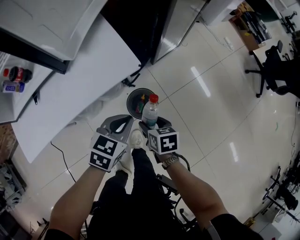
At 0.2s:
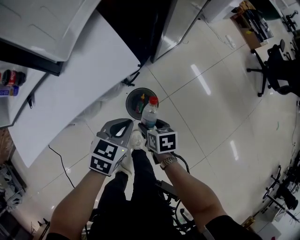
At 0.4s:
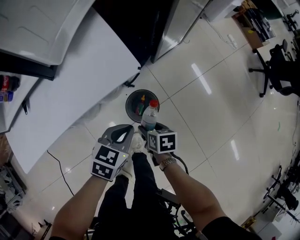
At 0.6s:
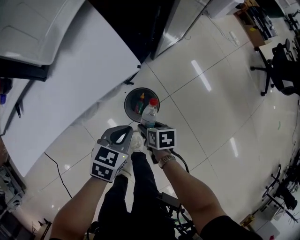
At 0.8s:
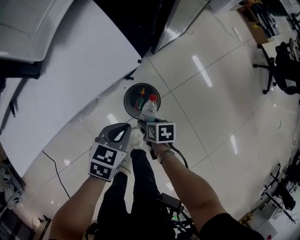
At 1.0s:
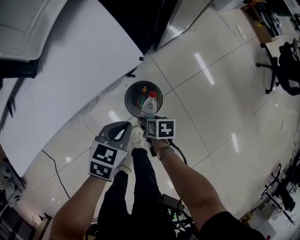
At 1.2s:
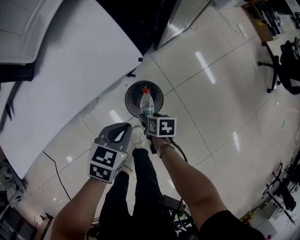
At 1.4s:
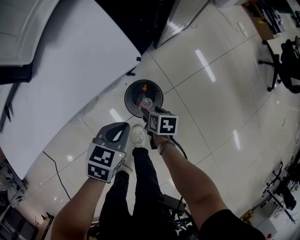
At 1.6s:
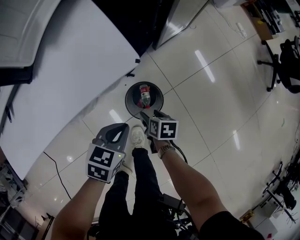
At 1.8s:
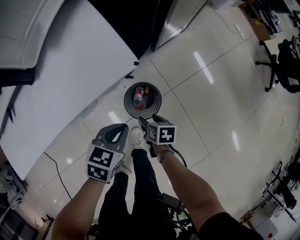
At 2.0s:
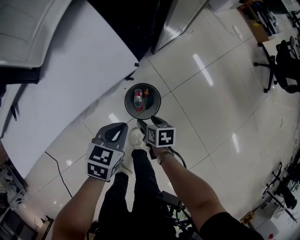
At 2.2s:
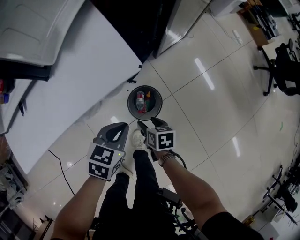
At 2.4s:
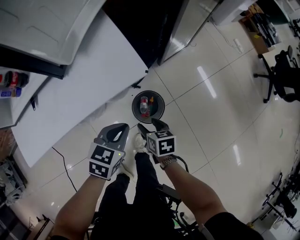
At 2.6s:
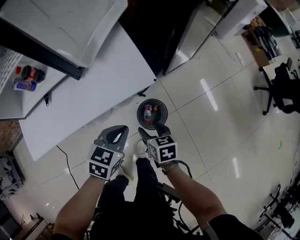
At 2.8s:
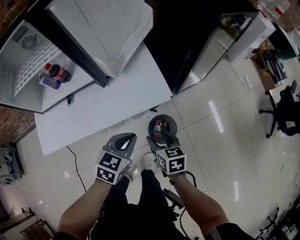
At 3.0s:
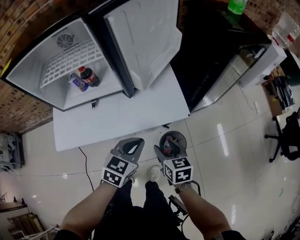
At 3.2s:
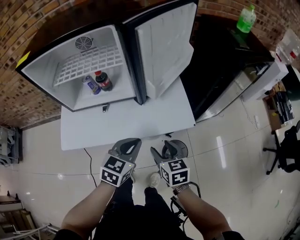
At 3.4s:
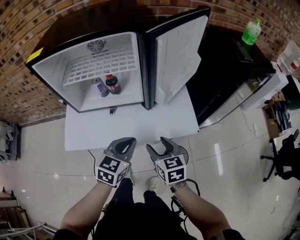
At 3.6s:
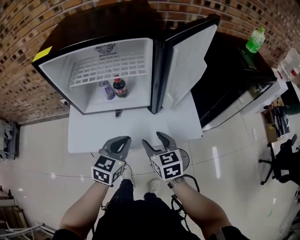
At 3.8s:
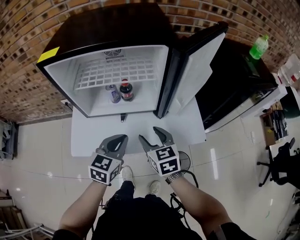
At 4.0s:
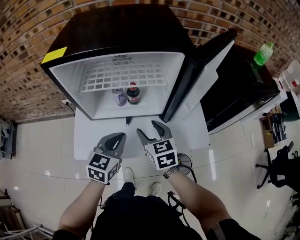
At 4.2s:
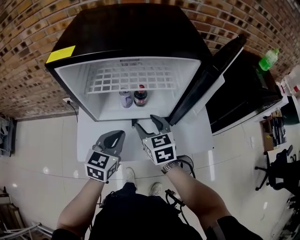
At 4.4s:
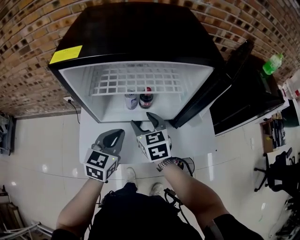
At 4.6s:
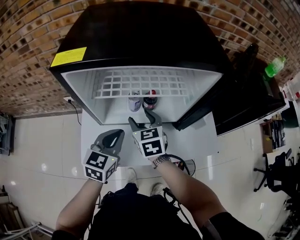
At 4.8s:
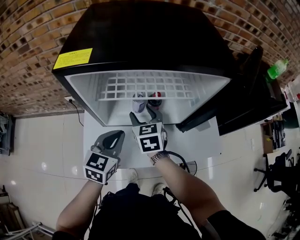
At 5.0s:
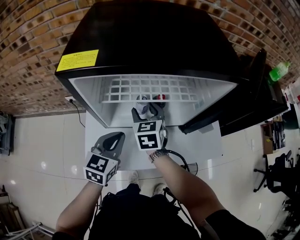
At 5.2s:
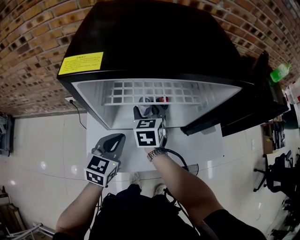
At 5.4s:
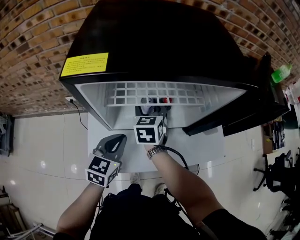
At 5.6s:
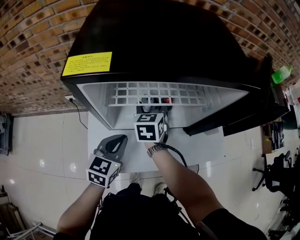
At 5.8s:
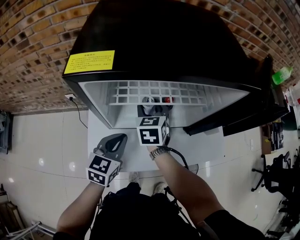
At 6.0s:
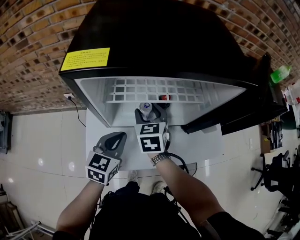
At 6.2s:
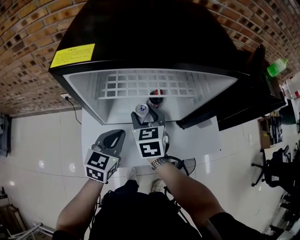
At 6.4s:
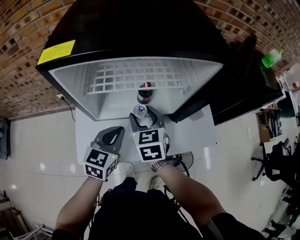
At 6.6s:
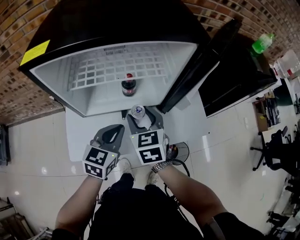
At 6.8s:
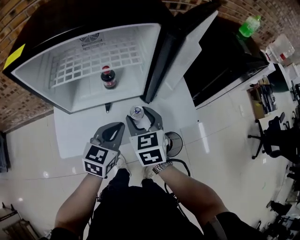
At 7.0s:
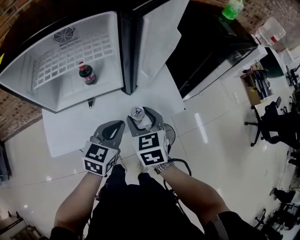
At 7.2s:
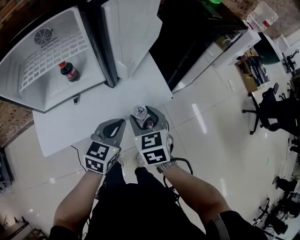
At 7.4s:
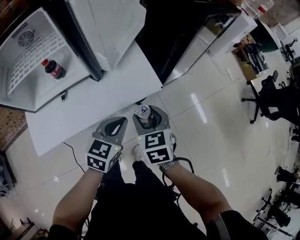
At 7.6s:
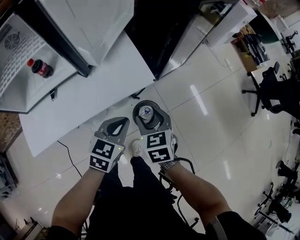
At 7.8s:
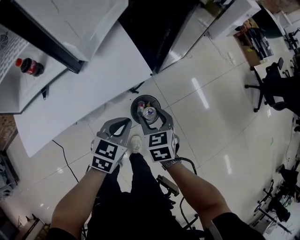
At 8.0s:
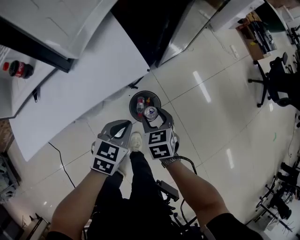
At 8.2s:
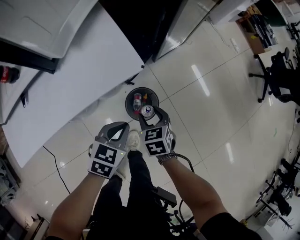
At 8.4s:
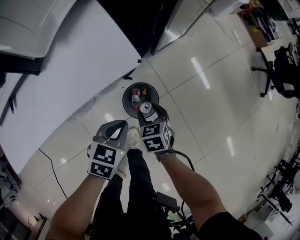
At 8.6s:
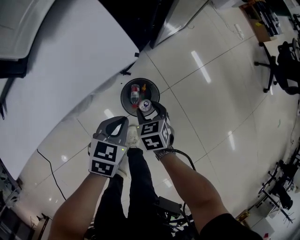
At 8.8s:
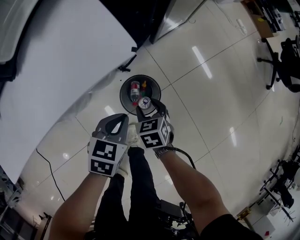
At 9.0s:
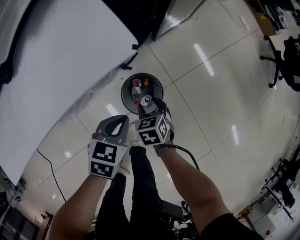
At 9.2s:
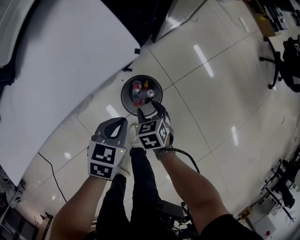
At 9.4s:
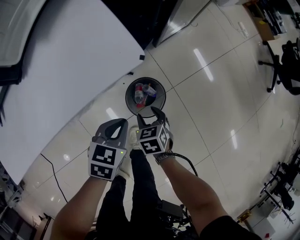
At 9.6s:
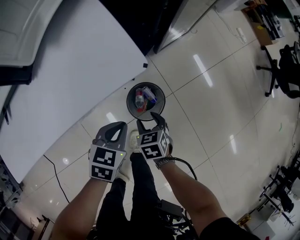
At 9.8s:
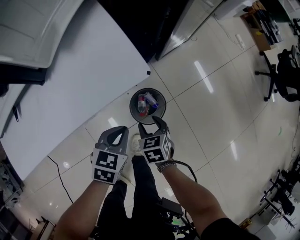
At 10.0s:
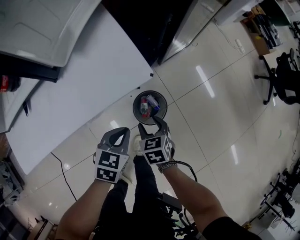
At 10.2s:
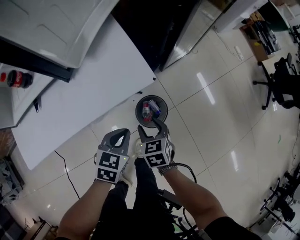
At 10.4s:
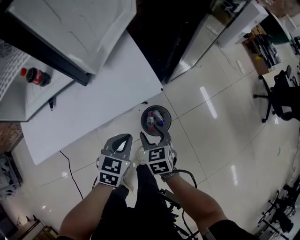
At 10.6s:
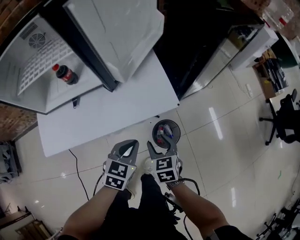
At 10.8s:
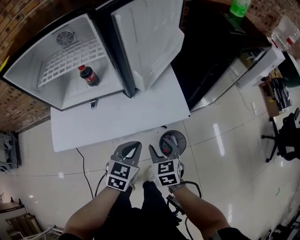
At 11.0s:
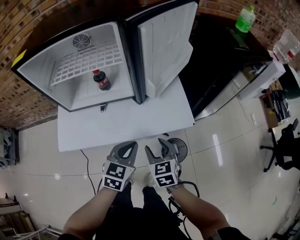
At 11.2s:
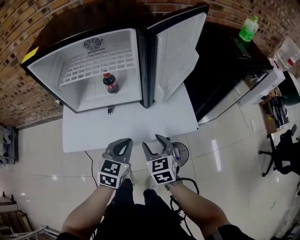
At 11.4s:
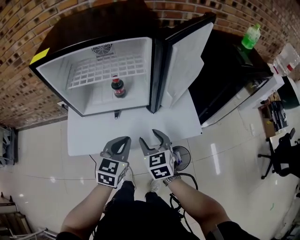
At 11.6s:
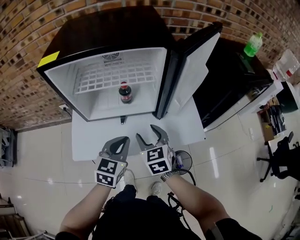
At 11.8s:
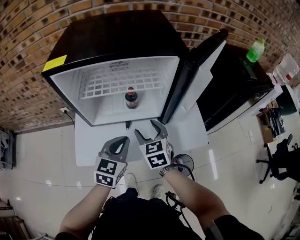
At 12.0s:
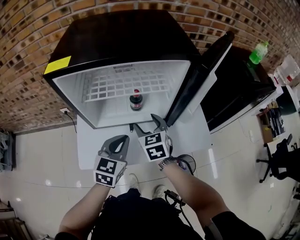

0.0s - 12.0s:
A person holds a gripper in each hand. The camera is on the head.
0.0s - 1.6s: Both grippers move downward, approximately 15 cm.
1.6s - 3.0s: The left gripper heads upward and to the left, covering approximately 25 cm, and rotates approximately 30 degrees, while the right gripper heads upward, covering about 35 cm, and changes its angle by roughly 40 degrees.
3.0s - 4.4s: The right gripper shifts approximately 40 cm to the left, forward and upward, and changes its angle by roughly 30 degrees, while the left gripper moves to the left and forward, about 35 cm, and rotates about 20 degrees.
4.4s - 6.0s: The left gripper travels to the left by about 5 cm. Meanwhile the right gripper shifts roughly 10 cm forward and to the left.
6.0s - 7.6s: Both grippers are carried to the right, approximately 50 cm. The left gripper swivels roughly 30 degrees.
7.6s - 9.0s: Both grippers travel together downward, some 30 cm. The right gripper swivels roughly 20 degrees.
9.0s - 10.4s: The two grippers go some 20 cm upward.
10.4s - 12.0s: The left gripper moves to the left and upward, roughly 40 cm, and rotates some 30 degrees. Meanwhile the right gripper goes approximately 50 cm to the left, upward and forward, and rotates roughly 30 degrees.

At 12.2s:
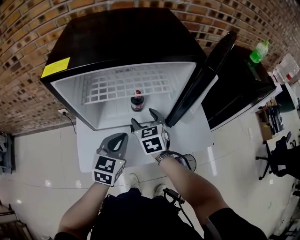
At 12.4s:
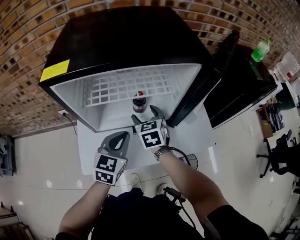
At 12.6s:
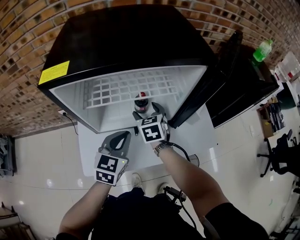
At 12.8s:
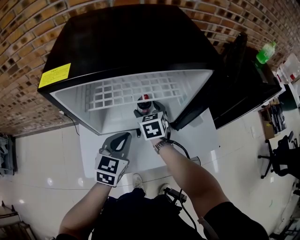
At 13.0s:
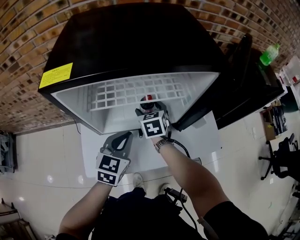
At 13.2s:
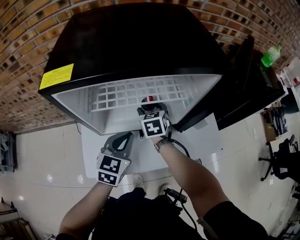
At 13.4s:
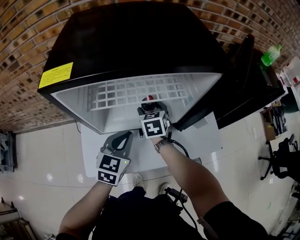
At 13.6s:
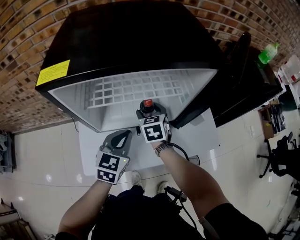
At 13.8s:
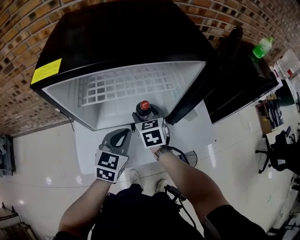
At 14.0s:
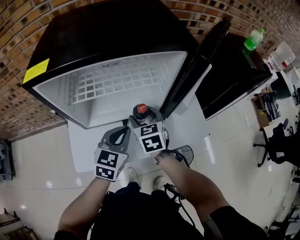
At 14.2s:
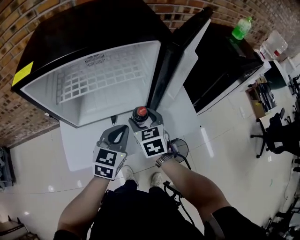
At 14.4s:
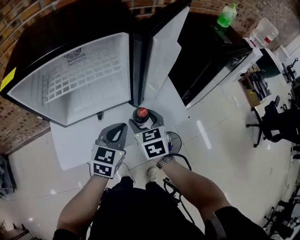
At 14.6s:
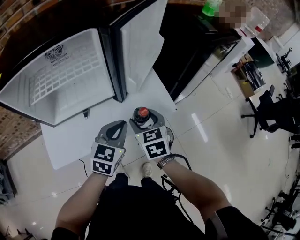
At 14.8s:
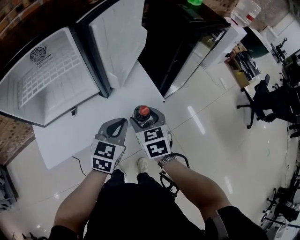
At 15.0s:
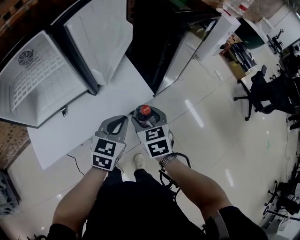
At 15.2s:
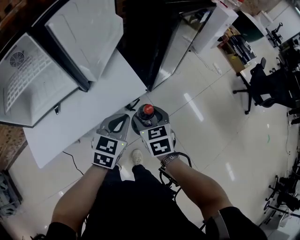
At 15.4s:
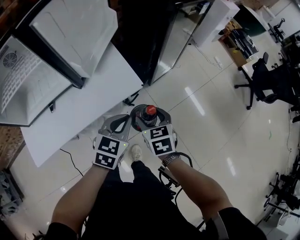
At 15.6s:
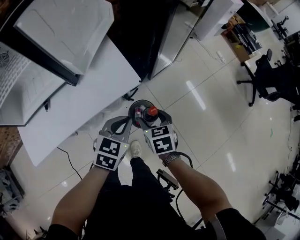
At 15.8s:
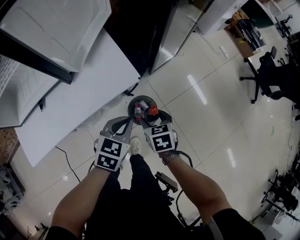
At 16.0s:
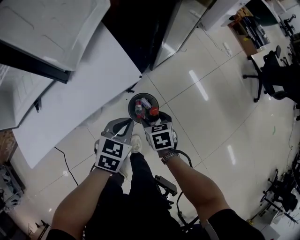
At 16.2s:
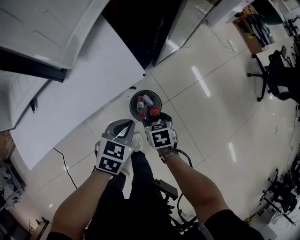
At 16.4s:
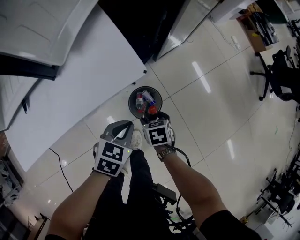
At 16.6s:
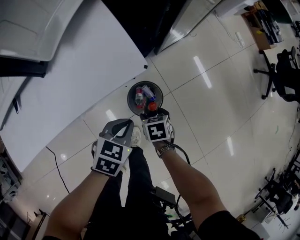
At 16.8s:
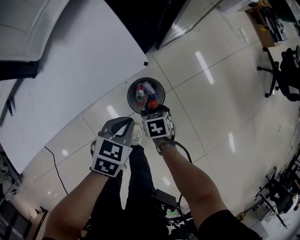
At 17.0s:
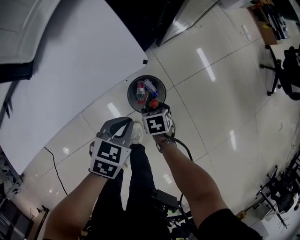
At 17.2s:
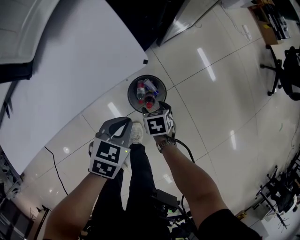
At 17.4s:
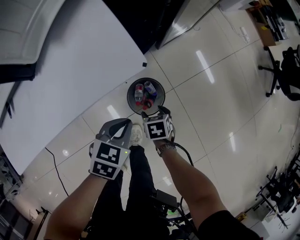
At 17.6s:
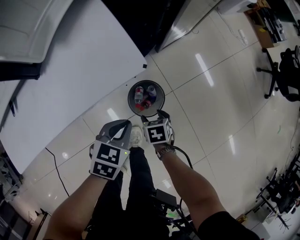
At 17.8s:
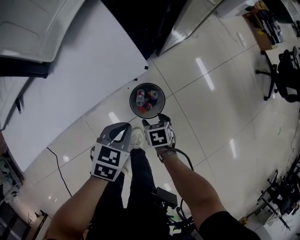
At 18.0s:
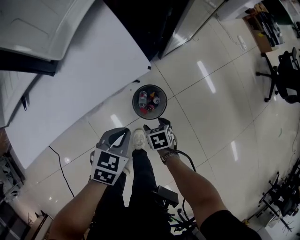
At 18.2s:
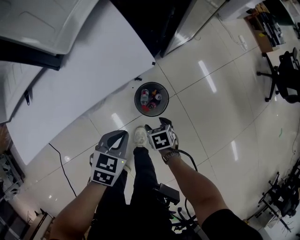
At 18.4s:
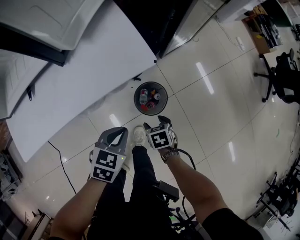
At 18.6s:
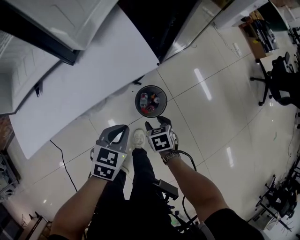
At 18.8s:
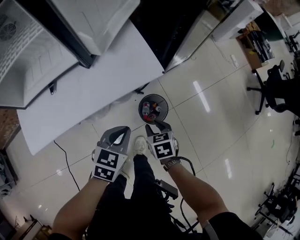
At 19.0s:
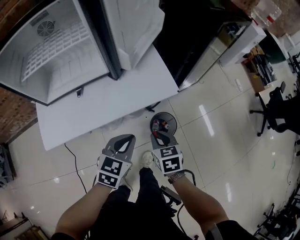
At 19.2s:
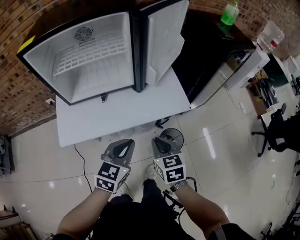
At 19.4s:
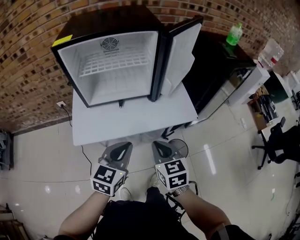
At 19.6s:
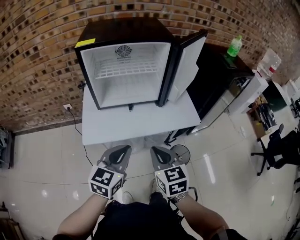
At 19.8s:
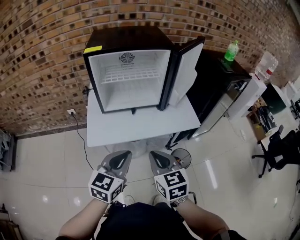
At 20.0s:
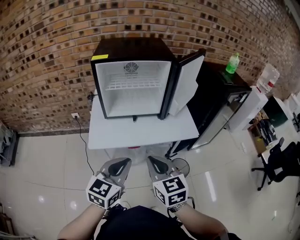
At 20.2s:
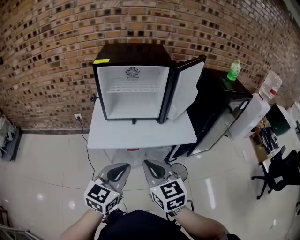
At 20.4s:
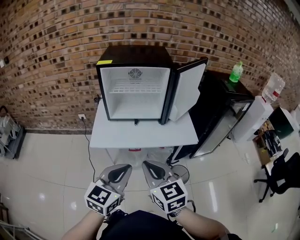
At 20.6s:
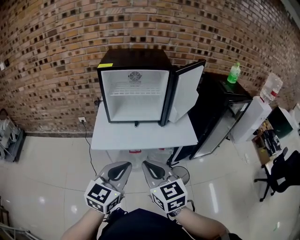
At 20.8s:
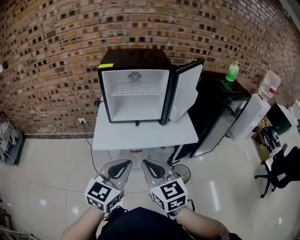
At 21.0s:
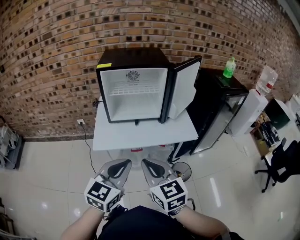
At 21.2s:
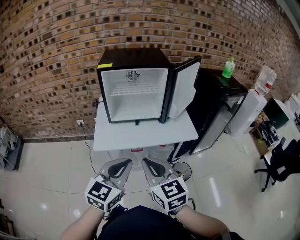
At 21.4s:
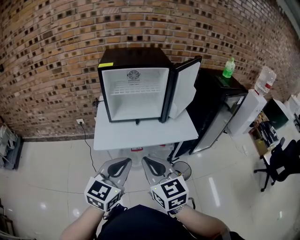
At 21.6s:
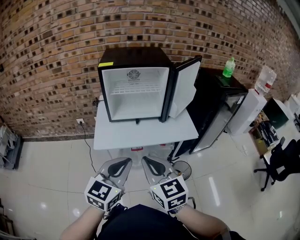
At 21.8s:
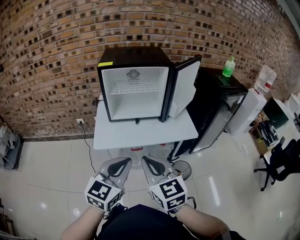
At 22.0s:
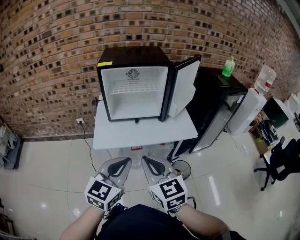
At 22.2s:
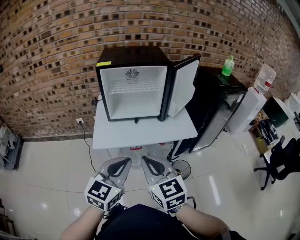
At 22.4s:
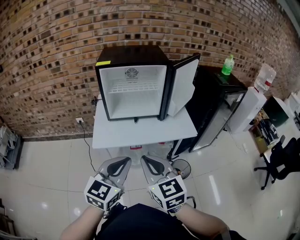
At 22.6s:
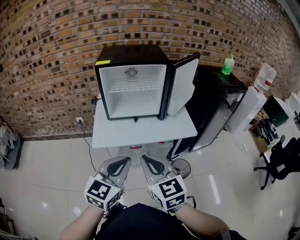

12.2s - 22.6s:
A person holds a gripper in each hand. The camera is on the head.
12.2s - 13.6s: The right gripper shifts approximately 5 cm forward.
13.6s - 15.2s: The two grippers travel together, to the right, about 40 cm. The right gripper swivels roughly 20 degrees, while the left gripper swivels roughly 30 degrees.
15.2s - 16.6s: Both grippers move downward, roughly 30 cm. The right gripper swivels about 30 degrees; the left gripper changes its angle by roughly 30 degrees.
16.6s - 18.2s: Both grippers move backward, some 5 cm.
18.2s - 19.6s: Both grippers move upward and to the left, approximately 50 cm. The left gripper angles its fingers upward, by some 40 degrees; the right gripper tilts its fingers approximately 40 degrees upward, and closes its fingers.
19.6s - 21.2s: The left gripper moves backward and upward, roughly 15 cm. Meanwhile the right gripper heads upward and backward, covering approximately 15 cm.
21.2s - 22.6s: The two grippers keep their place.

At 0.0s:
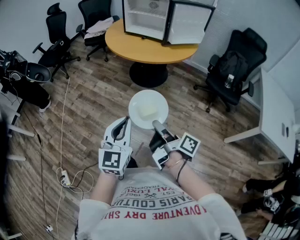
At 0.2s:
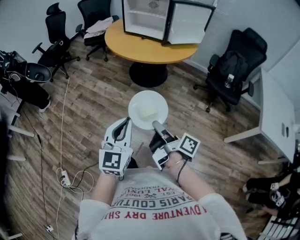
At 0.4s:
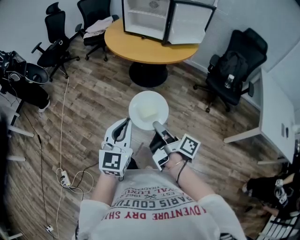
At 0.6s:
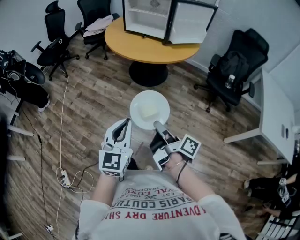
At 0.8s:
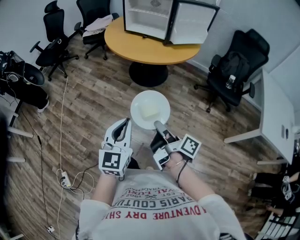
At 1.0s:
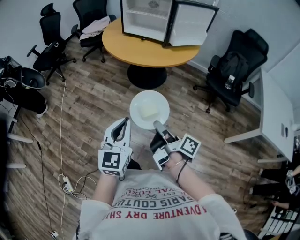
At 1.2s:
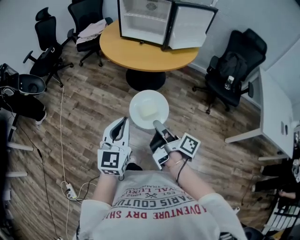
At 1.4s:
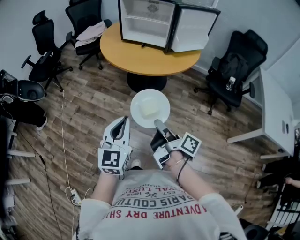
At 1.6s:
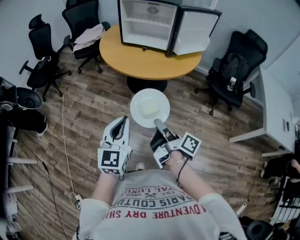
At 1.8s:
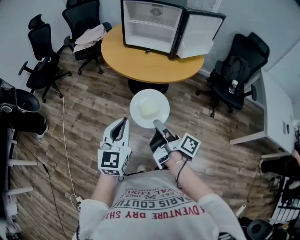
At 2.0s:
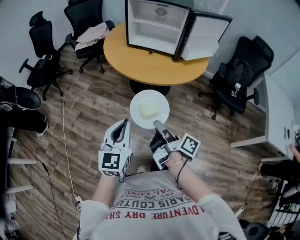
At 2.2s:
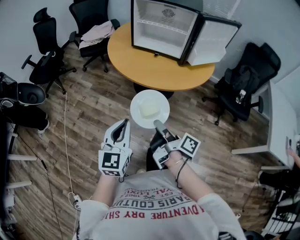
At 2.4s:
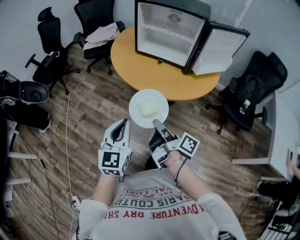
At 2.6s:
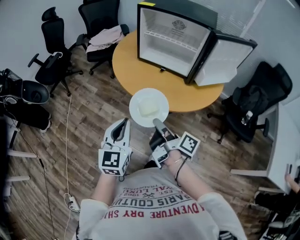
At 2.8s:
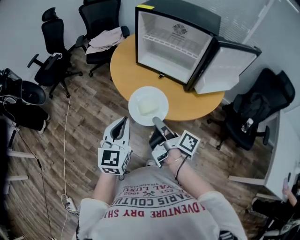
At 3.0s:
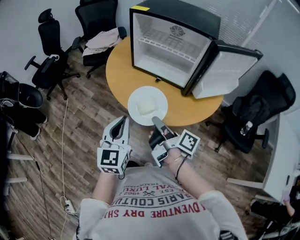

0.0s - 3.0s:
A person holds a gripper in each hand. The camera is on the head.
0.0s - 1.6s: The left gripper moves some 25 cm.
1.6s - 3.0s: The left gripper ends up some 30 cm from where it was.
